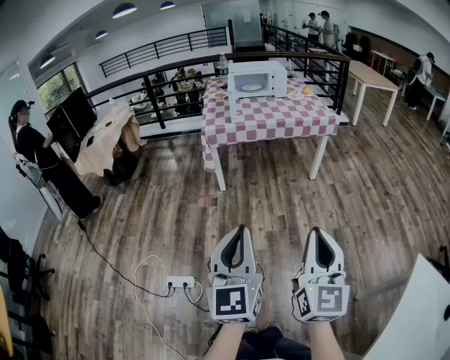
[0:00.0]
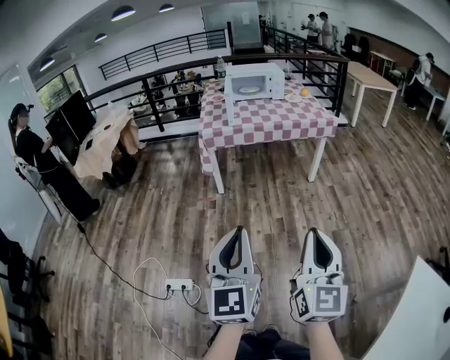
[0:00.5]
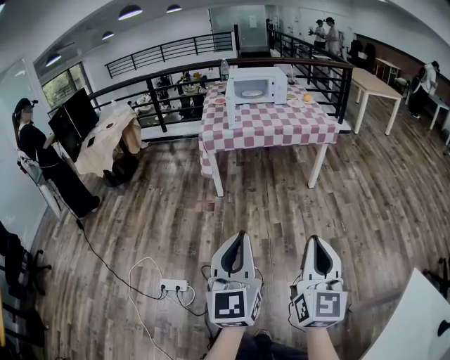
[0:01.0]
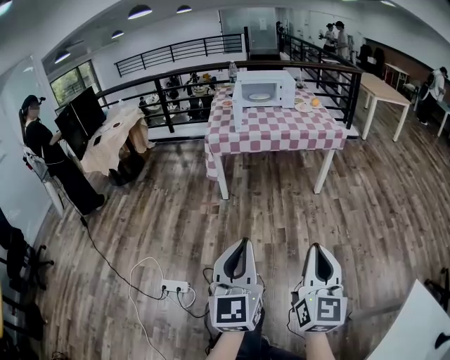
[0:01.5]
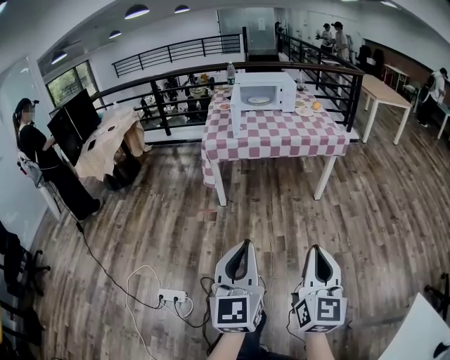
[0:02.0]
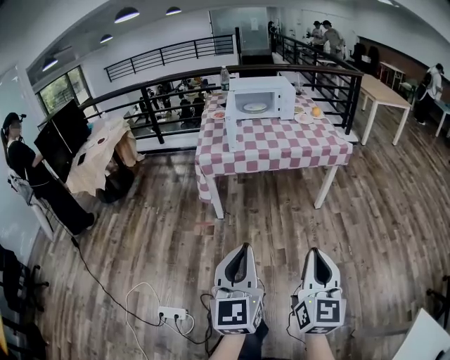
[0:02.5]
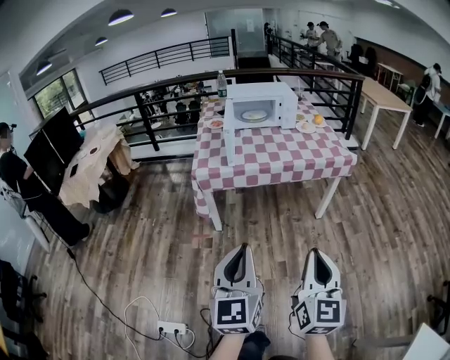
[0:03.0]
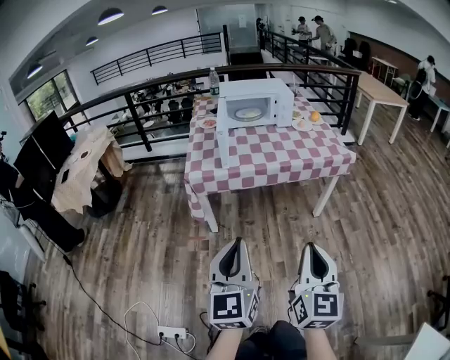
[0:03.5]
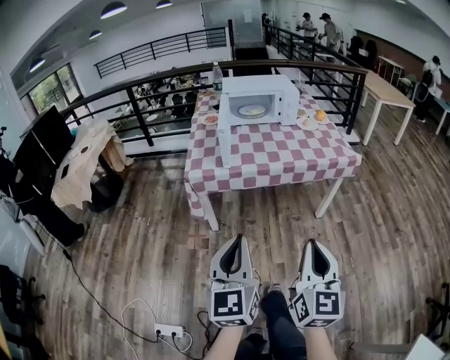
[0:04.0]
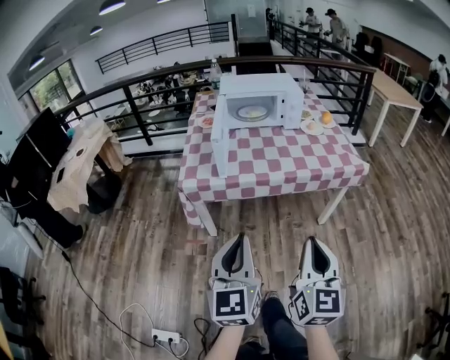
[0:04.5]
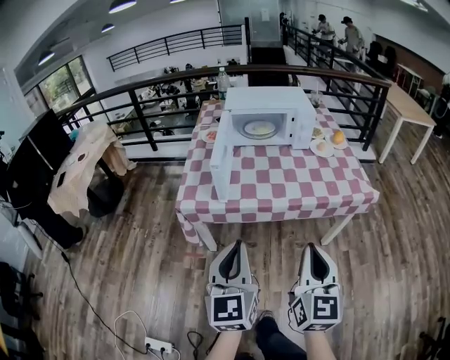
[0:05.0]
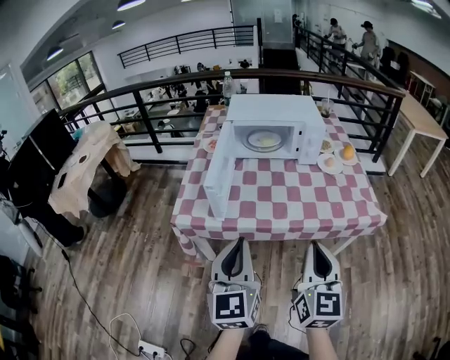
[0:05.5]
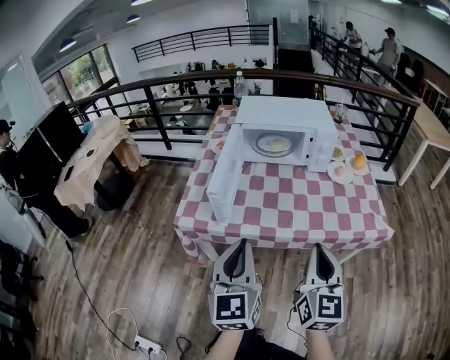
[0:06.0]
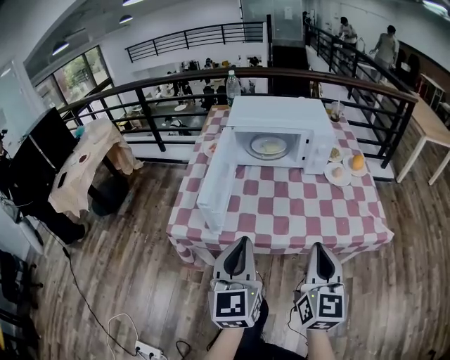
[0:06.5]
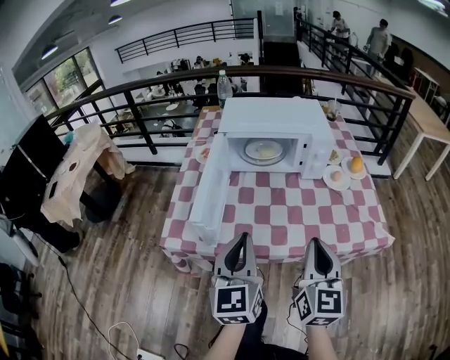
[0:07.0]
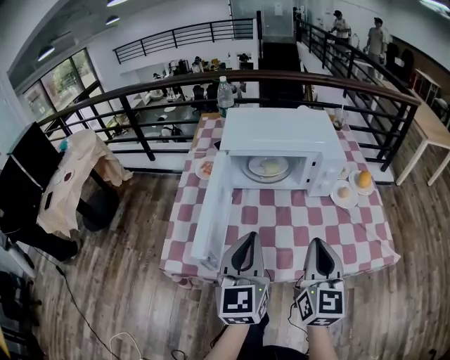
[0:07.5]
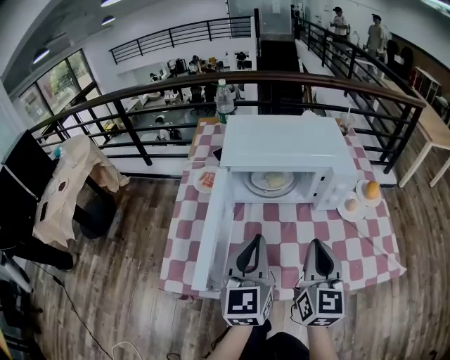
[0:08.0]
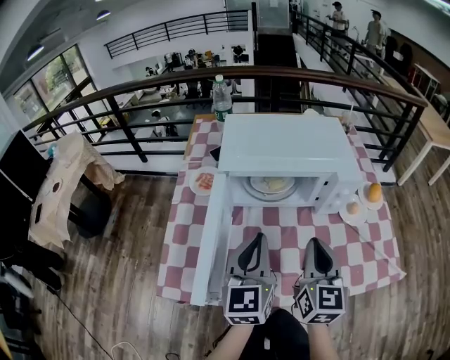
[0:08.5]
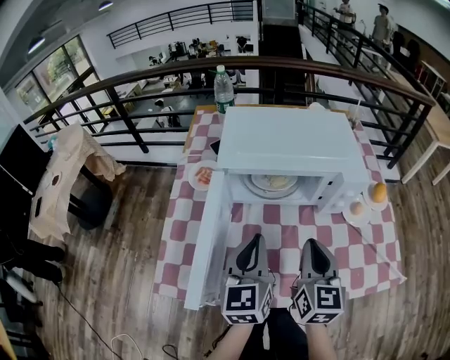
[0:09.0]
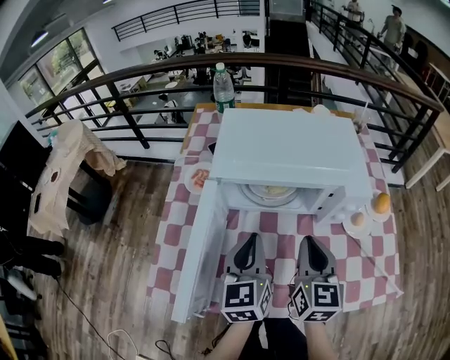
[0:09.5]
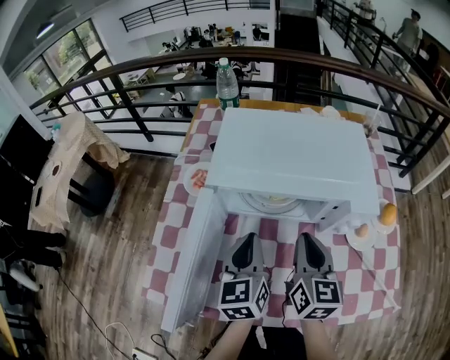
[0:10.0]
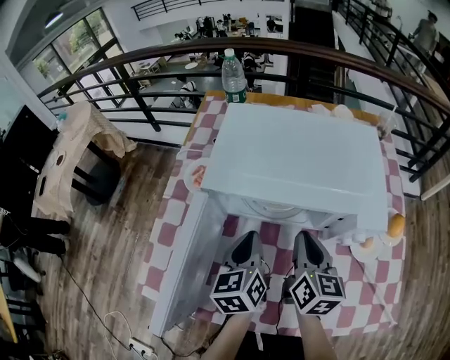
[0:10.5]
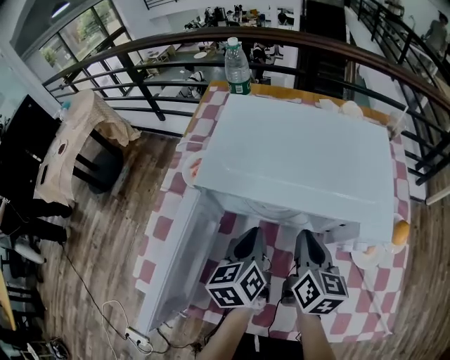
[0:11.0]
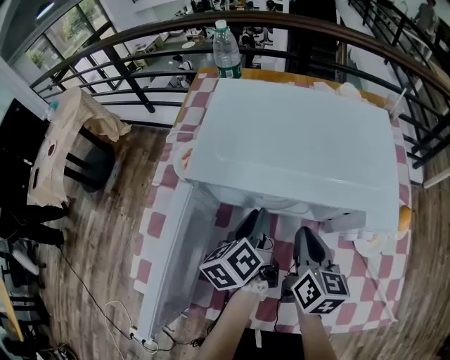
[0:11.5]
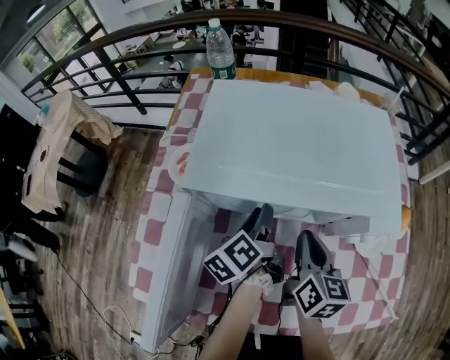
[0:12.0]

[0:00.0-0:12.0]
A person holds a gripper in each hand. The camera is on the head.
0:00.0 to 0:02.0: The right gripper goes roughly 10 cm forward and downward. The left gripper shifts roughly 10 cm forward.
0:02.0 to 0:04.0: Both grippers travel together forward, roughly 30 cm.
0:04.0 to 0:06.0: Both grippers travel together forward, about 35 cm.
0:06.0 to 0:08.0: Both grippers travel together forward, some 30 cm.
0:08.0 to 0:10.0: The left gripper moves forward and downward, approximately 15 cm, and rotates some 20 degrees; the right gripper goes about 15 cm forward.
0:10.0 to 0:12.0: The right gripper is displaced downward by roughly 10 cm. The left gripper goes about 15 cm forward and downward, rotates around the line of its fingers by roughly 50 degrees, counterclockwise from behind, and opens its fingers.

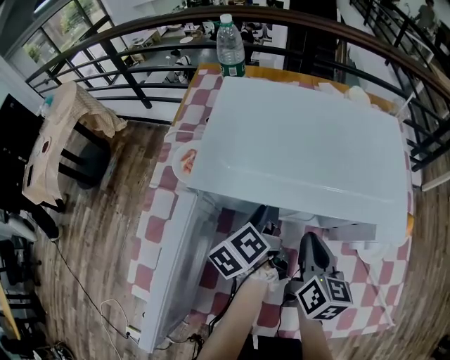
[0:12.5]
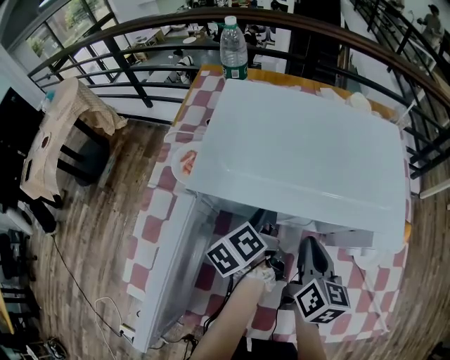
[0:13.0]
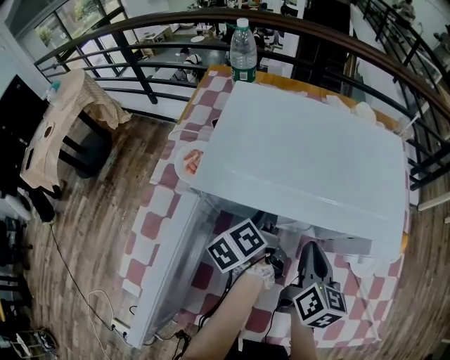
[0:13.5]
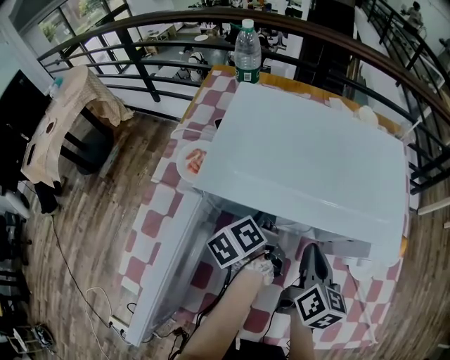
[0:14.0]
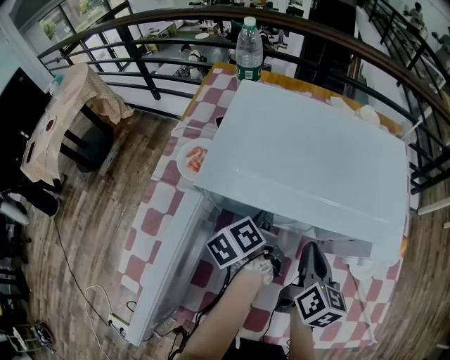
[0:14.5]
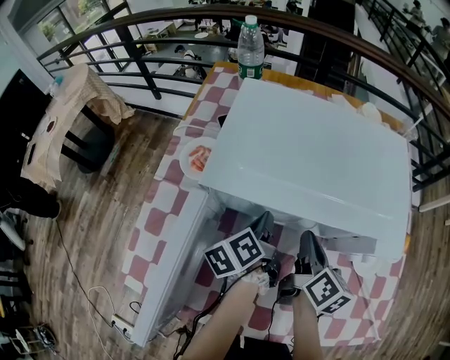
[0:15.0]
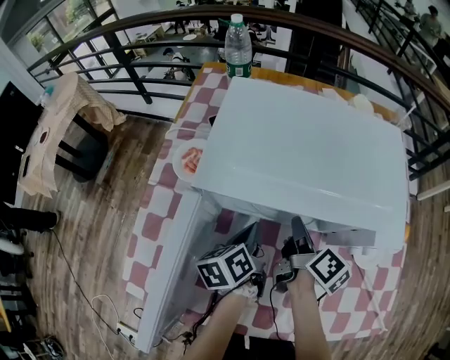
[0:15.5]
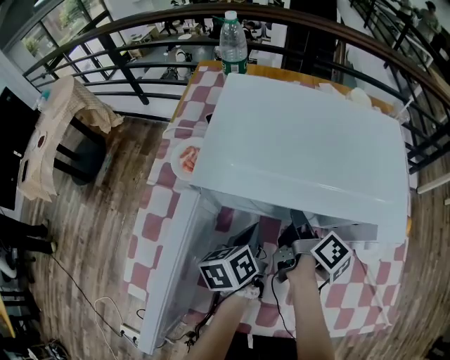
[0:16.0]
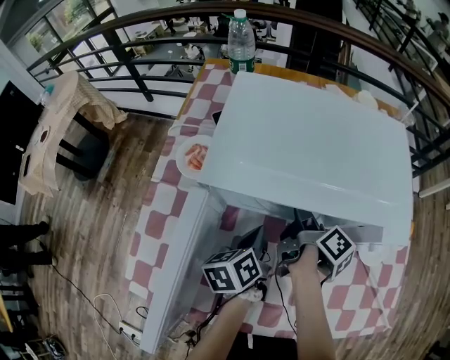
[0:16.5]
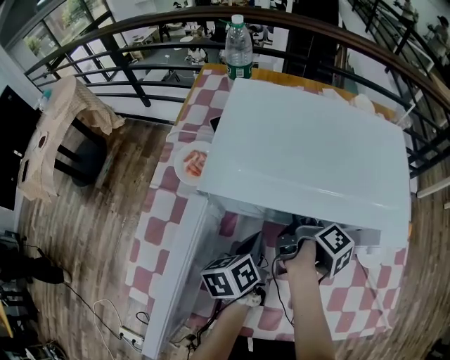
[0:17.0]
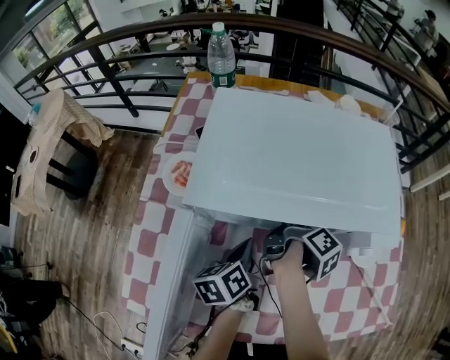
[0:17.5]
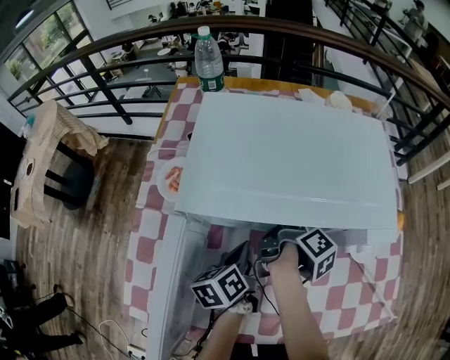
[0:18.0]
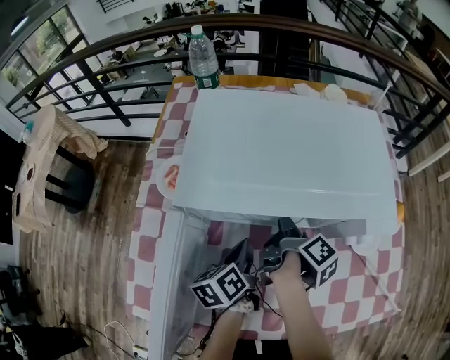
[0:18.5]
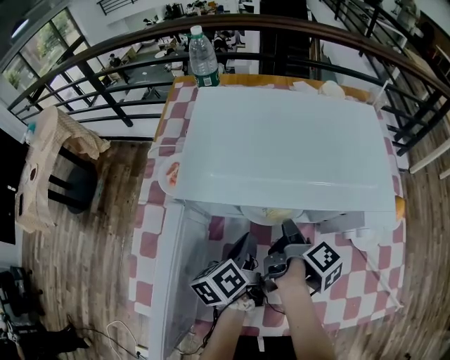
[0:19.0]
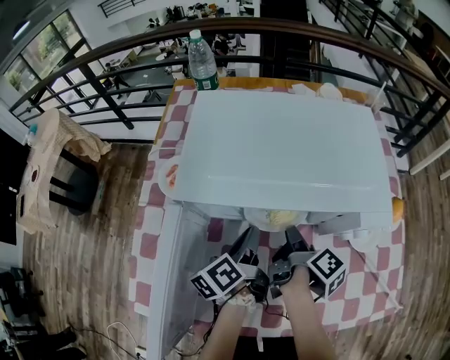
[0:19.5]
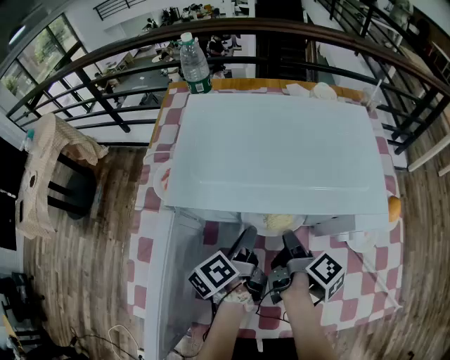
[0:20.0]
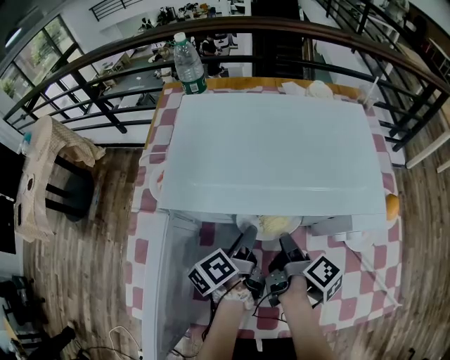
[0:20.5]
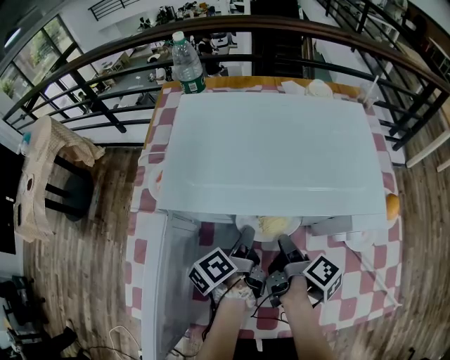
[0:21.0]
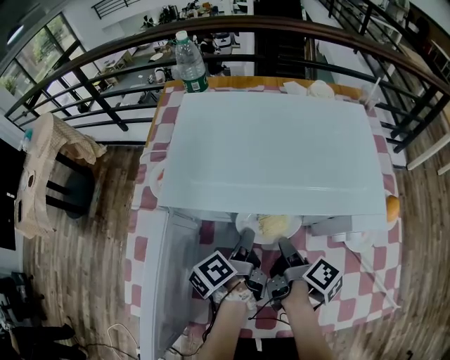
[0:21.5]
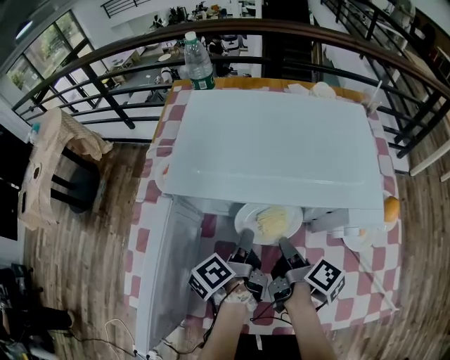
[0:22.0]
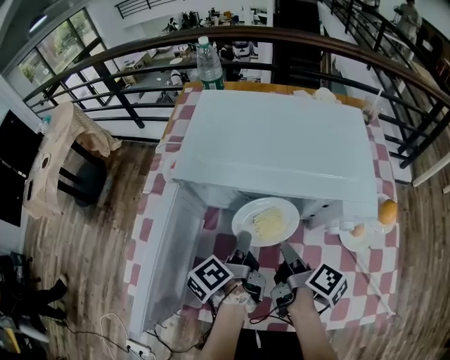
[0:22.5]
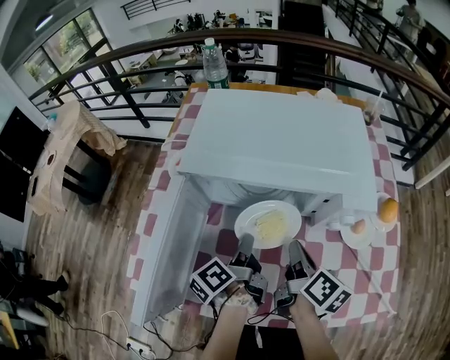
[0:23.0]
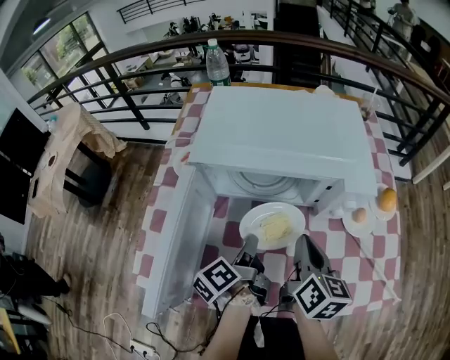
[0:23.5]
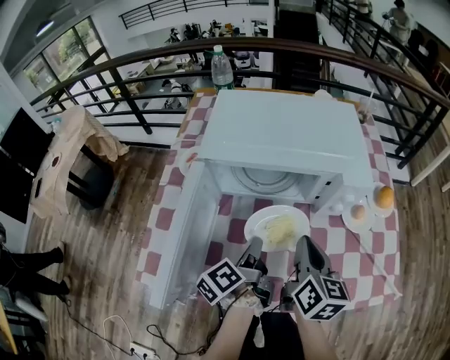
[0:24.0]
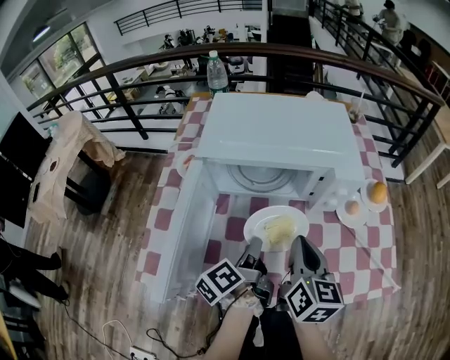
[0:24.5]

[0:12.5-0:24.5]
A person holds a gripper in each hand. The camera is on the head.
0:12.5 to 0:14.5: The left gripper closes up.
0:14.5 to 0:16.5: The left gripper is displaced backward by some 5 cm, and turns by about 20 degrees. The right gripper travels forward and to the left by about 10 cm, rotates around the line of its fingers by some 50 degrees, clockwise from behind, and opens its fingers.
0:16.5 to 0:18.5: The right gripper closes.
0:18.5 to 0:20.5: The left gripper turns by roughly 20 degrees, and opens. The right gripper changes place by some 5 cm.
0:20.5 to 0:22.5: The grippers both shift backward by about 5 cm. The left gripper closes.
0:22.5 to 0:24.5: The left gripper heads backward, covering approximately 10 cm; the right gripper moves upward and backward, about 15 cm, and rolls counterclockwise, seen from behind, by about 50 degrees.

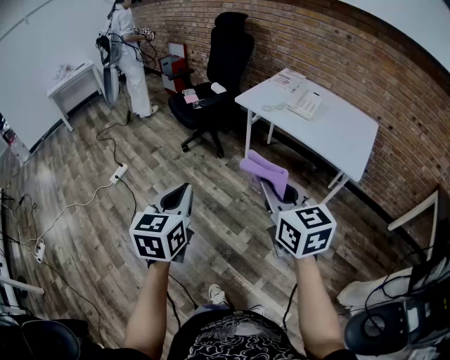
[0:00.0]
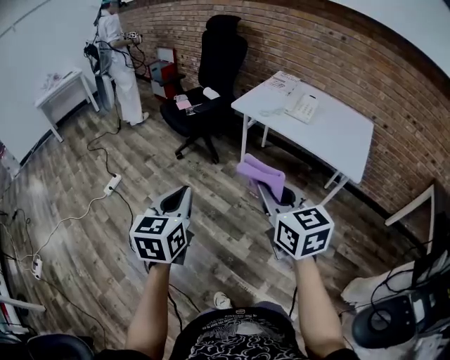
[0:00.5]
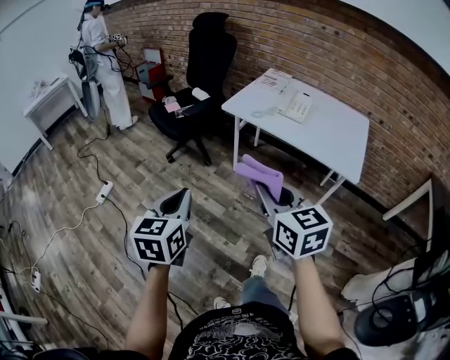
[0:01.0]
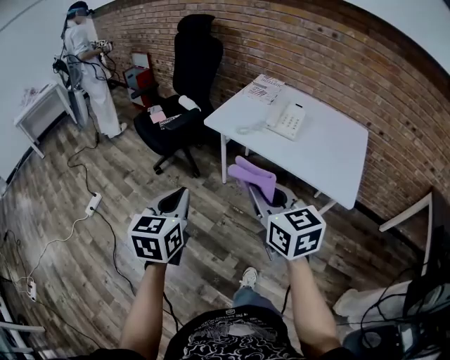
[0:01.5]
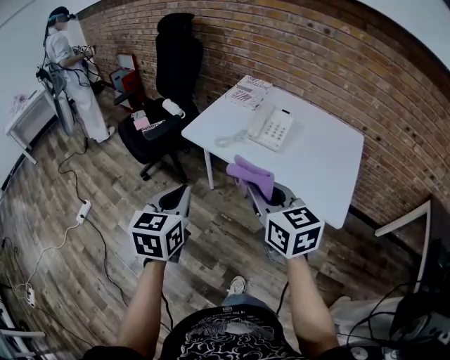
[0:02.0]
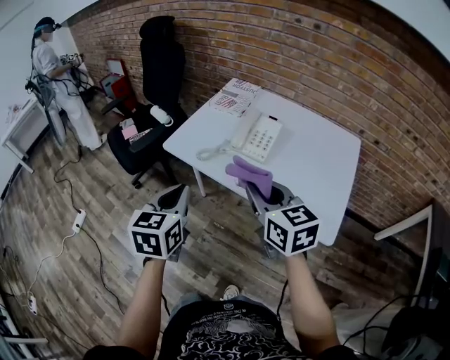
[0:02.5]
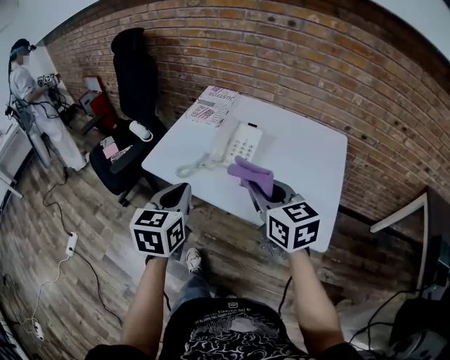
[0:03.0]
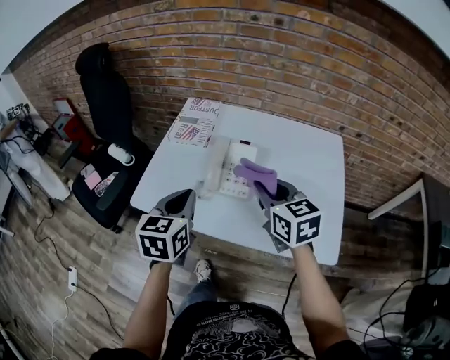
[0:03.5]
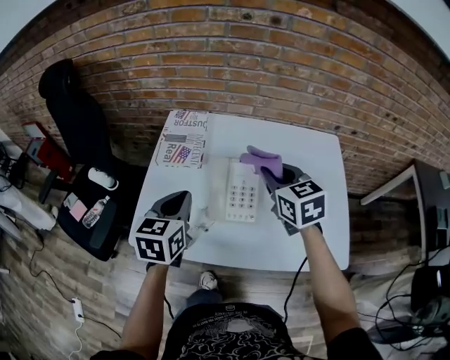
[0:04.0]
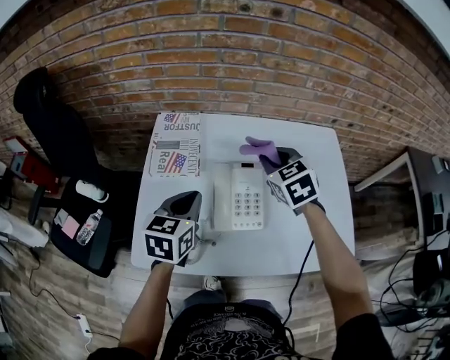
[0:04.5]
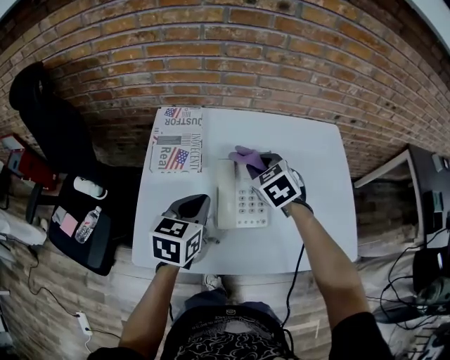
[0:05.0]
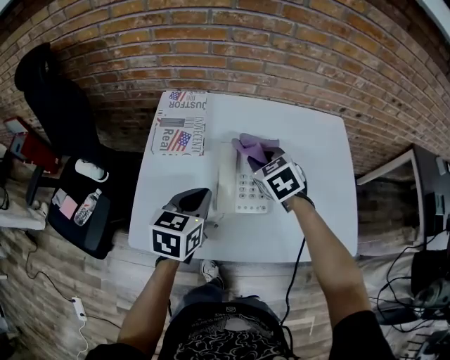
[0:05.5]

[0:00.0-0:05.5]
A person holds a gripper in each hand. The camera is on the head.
0:00.0 to 0:02.0: The two grippers go about 35 cm forward and to the right.
0:02.0 to 0:03.5: The grippers both shift forward and to the right by about 30 cm.
0:03.5 to 0:05.5: The left gripper goes some 15 cm forward and downward, and swivels roughly 20 degrees. The right gripper moves forward, downward and to the left, roughly 25 cm, and turns by approximately 30 degrees.
